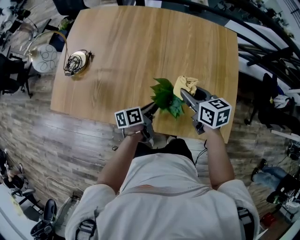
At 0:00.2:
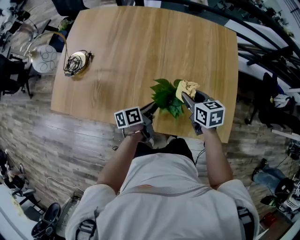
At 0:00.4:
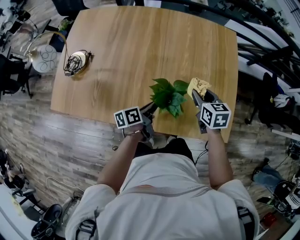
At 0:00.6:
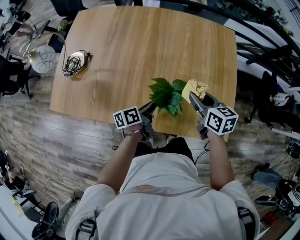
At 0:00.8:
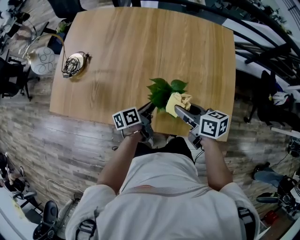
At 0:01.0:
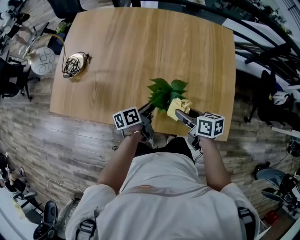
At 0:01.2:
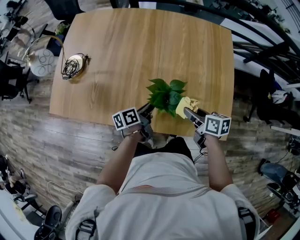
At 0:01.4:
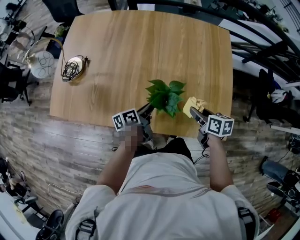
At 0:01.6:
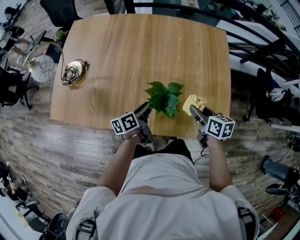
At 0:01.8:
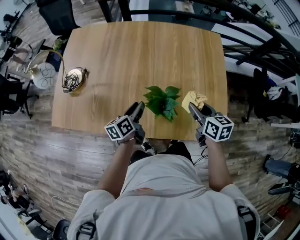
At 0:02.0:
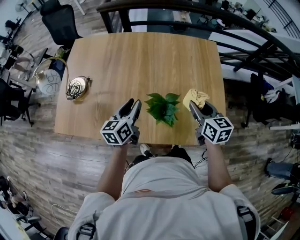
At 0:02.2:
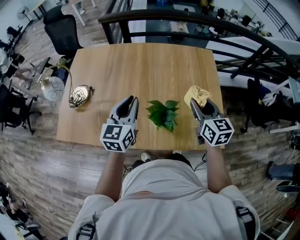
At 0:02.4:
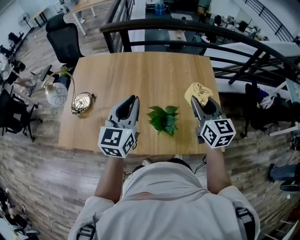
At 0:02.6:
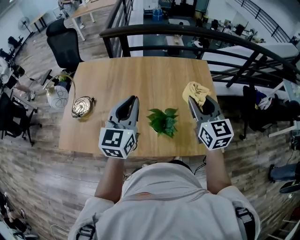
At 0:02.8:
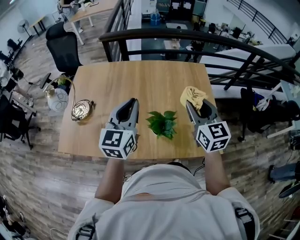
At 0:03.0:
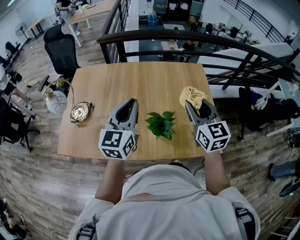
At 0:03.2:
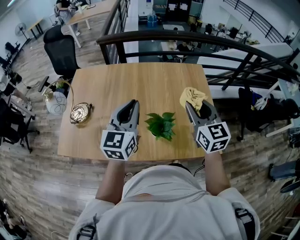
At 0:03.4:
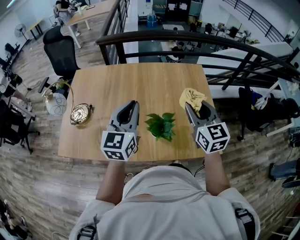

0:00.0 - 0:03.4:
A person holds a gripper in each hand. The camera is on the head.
0:00.0 - 0:01.6: The right gripper moves left and right over about 10 cm, changing direction 2 times.
0:01.6 - 0:03.4: Both grippers travel together upward, roughly 25 cm. The right gripper turns by about 50 degrees. Meanwhile the left gripper twists about 60 degrees clockwise, seen from behind, and closes.

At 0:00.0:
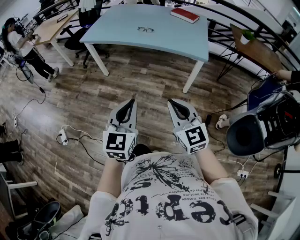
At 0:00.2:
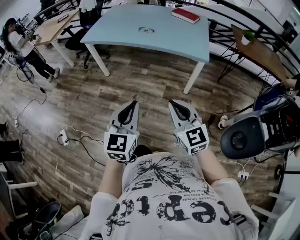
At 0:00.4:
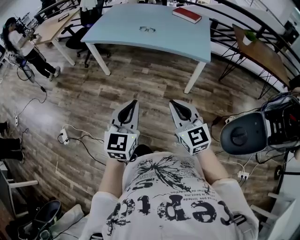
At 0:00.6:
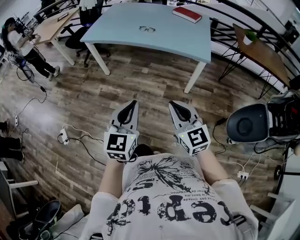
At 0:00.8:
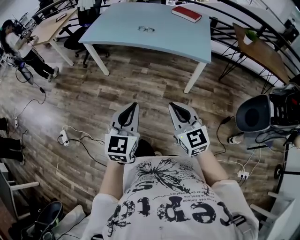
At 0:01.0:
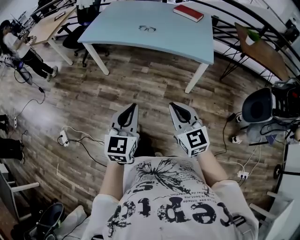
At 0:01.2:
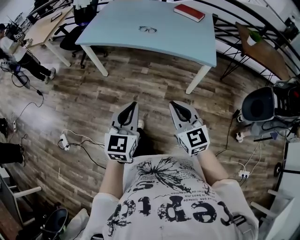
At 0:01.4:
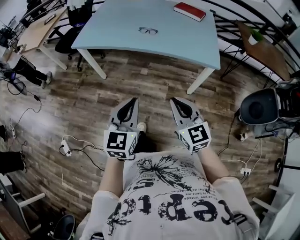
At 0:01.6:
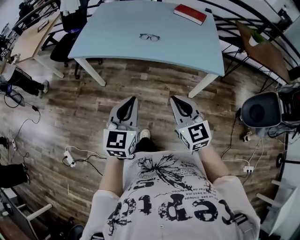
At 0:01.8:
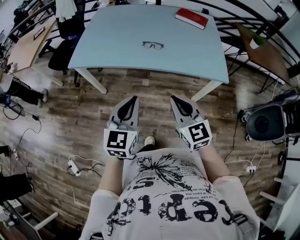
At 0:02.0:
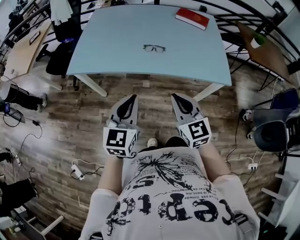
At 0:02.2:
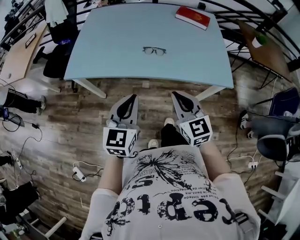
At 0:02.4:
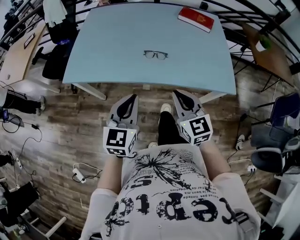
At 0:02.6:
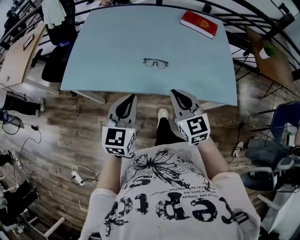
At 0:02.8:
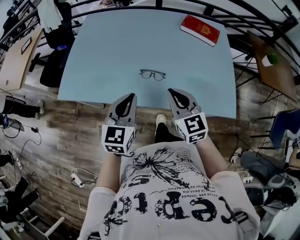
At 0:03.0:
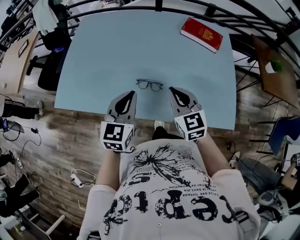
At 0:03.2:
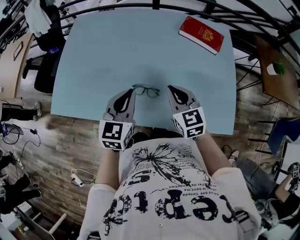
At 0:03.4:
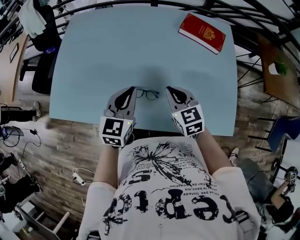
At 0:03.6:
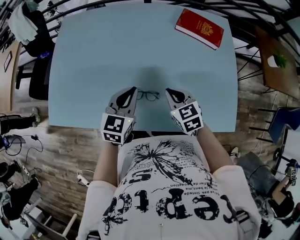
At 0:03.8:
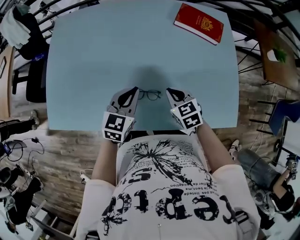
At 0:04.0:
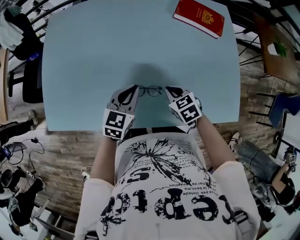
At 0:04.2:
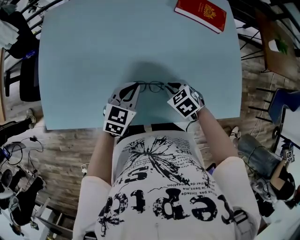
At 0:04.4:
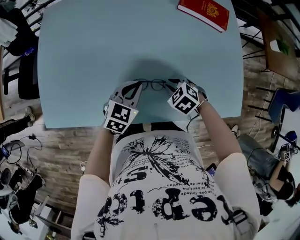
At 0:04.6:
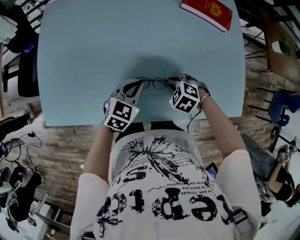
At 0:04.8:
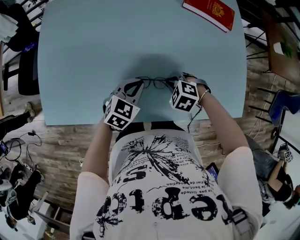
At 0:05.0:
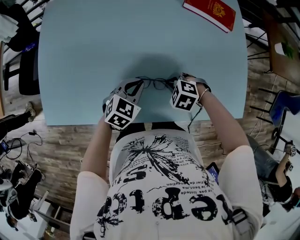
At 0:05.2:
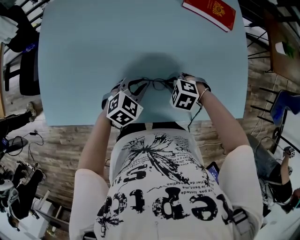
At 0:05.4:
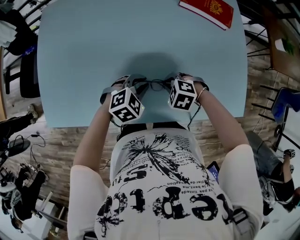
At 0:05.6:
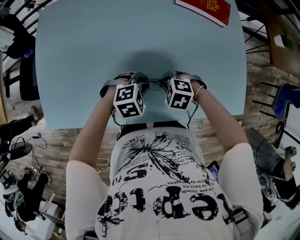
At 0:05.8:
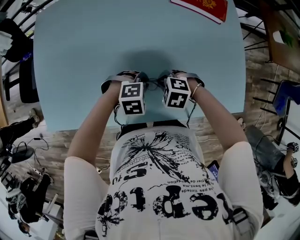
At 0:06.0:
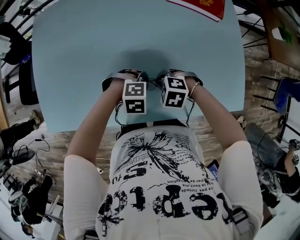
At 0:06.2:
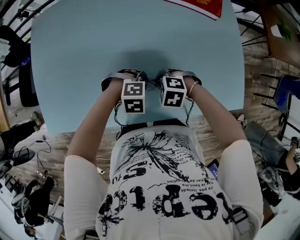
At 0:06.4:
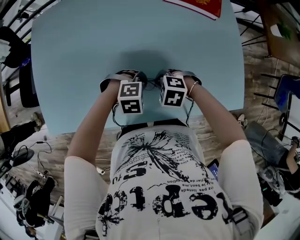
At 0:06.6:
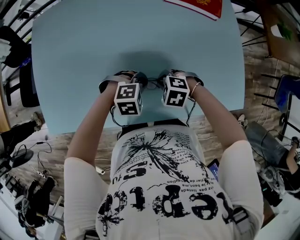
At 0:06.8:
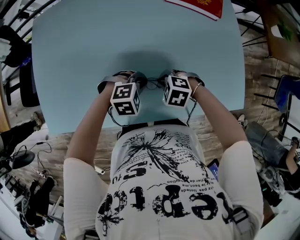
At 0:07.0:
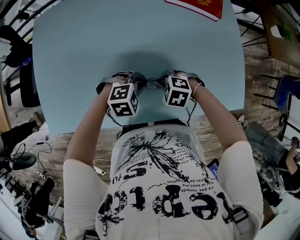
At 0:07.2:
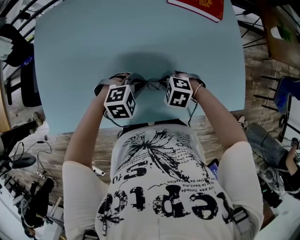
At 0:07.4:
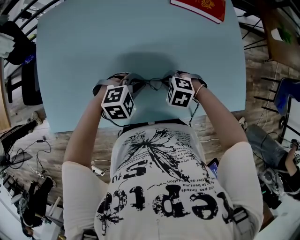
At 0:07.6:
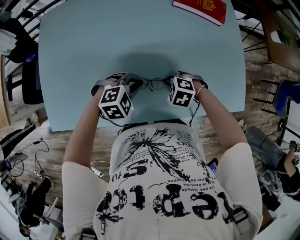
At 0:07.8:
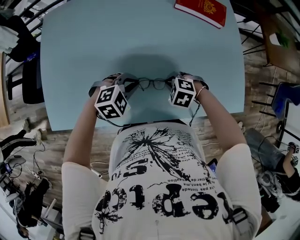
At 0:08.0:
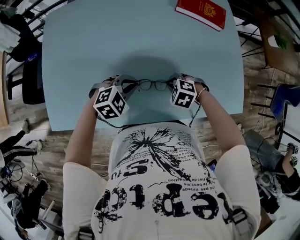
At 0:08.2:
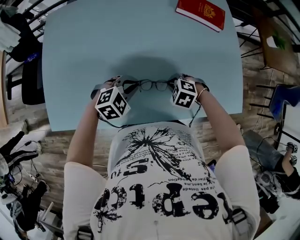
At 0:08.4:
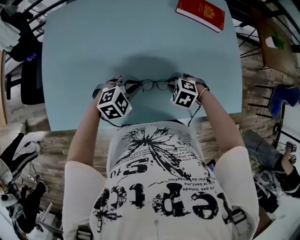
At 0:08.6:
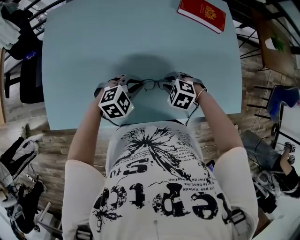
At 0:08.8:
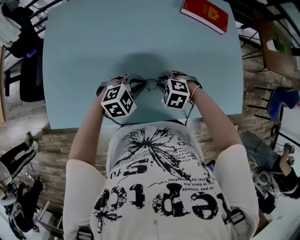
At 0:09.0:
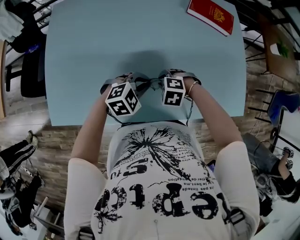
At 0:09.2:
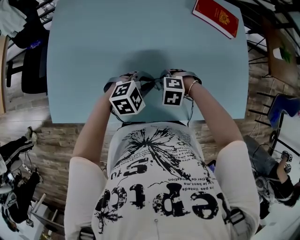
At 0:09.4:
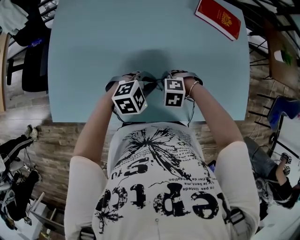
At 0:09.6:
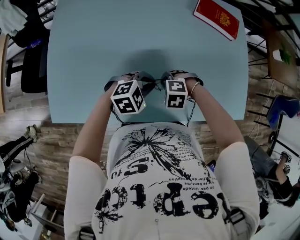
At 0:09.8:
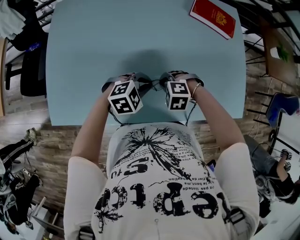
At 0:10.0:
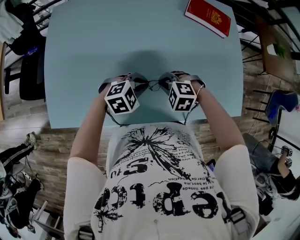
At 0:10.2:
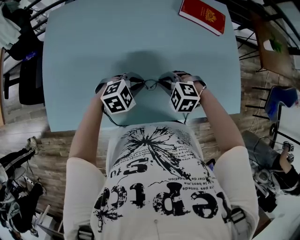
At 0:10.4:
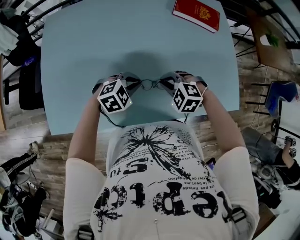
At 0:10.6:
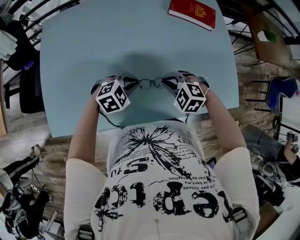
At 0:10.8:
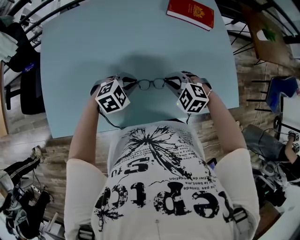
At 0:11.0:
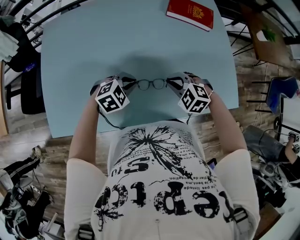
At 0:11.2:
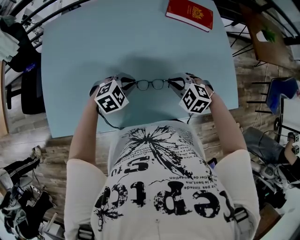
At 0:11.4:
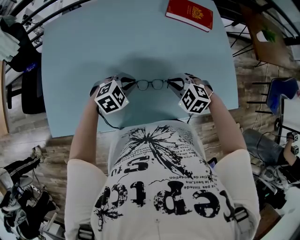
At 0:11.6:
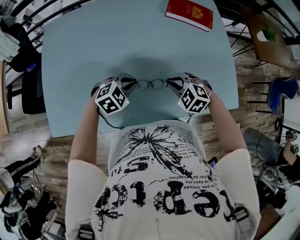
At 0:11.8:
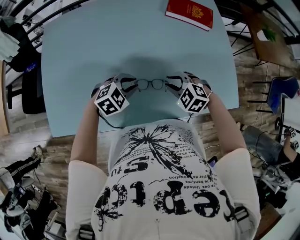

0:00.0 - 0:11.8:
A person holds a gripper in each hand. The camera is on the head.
0:00.0 - 0:01.4: Both grippers travel together forward, about 20 cm.
0:01.4 - 0:03.0: The pair of grippers is taken forward, roughly 60 cm.
0:03.0 - 0:04.4: The grippers both shift downward and forward by some 20 cm. The right gripper angles its fingers downward, by roughly 50 degrees. The left gripper changes its angle by some 30 degrees.
0:04.4 - 0:06.0: The right gripper turns by roughly 20 degrees. The left gripper is displaced downward by about 5 cm, and angles its fingers downward, by approximately 40 degrees.
0:06.0 - 0:07.4: The left gripper shifts approximately 5 cm upward.
0:07.4 - 0:08.8: The right gripper moves roughly 10 cm. The left gripper ends up roughly 5 cm from where it was.
0:08.8 - 0:10.4: The right gripper goes roughly 5 cm upward.
0:10.4 - 0:11.8: The right gripper moves to the right, some 5 cm, and opens.

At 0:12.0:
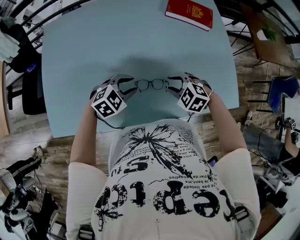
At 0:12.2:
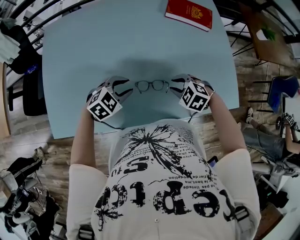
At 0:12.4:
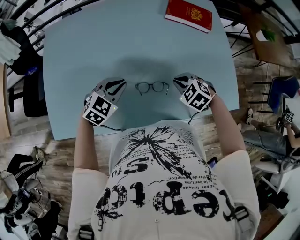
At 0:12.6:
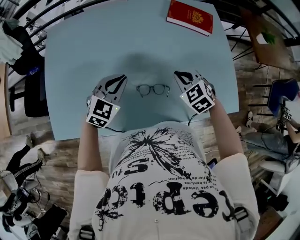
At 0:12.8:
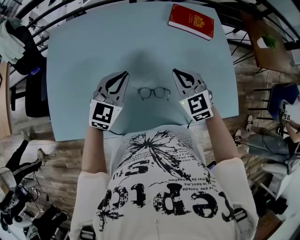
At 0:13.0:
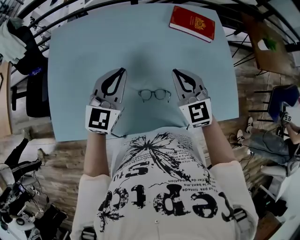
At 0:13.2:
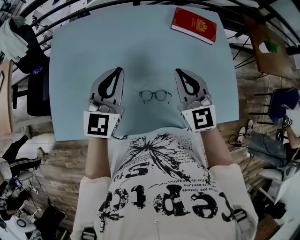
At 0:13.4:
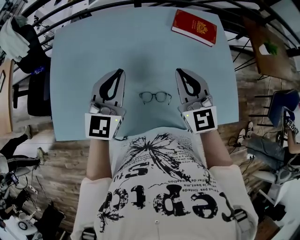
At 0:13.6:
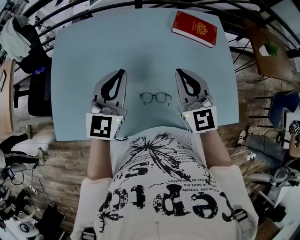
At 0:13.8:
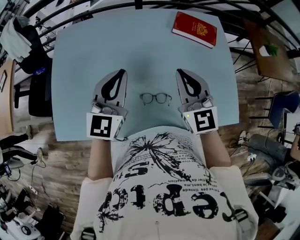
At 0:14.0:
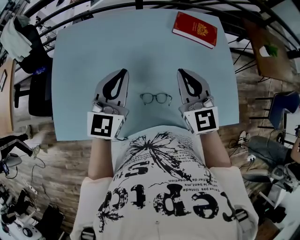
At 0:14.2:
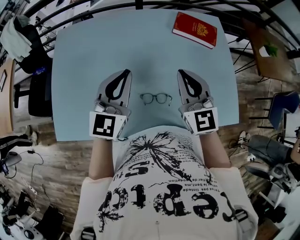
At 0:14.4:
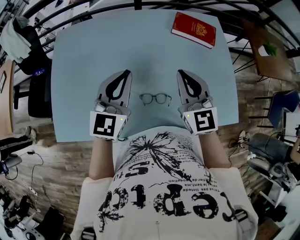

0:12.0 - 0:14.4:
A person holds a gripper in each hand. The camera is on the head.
0:12.0 - 0:13.2: The grippers both shift upward by some 20 cm. The right gripper angles its fingers upward, by some 50 degrees, and closes its fingers; the left gripper points its fingers about 50 degrees further upward, and closes up.
0:13.2 - 0:14.4: The grippers stay close to where they were, moving slightly.

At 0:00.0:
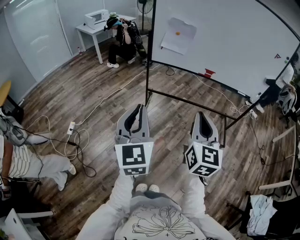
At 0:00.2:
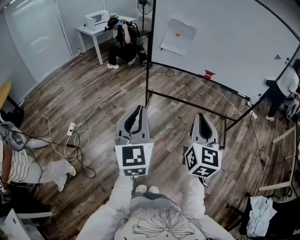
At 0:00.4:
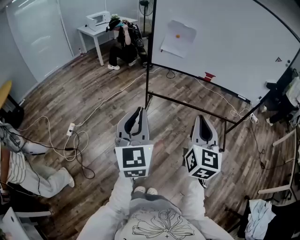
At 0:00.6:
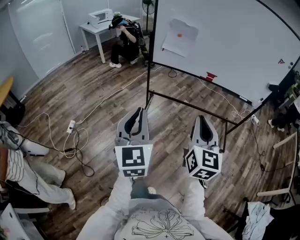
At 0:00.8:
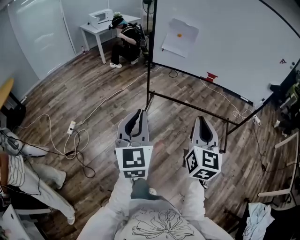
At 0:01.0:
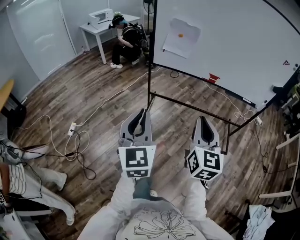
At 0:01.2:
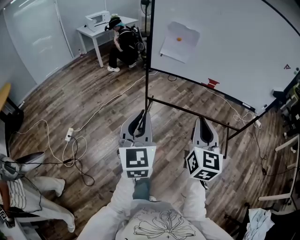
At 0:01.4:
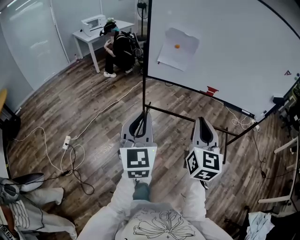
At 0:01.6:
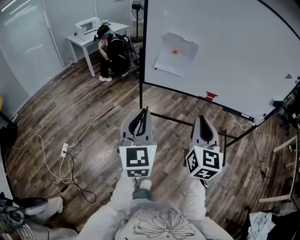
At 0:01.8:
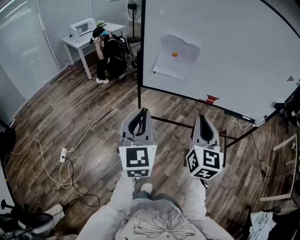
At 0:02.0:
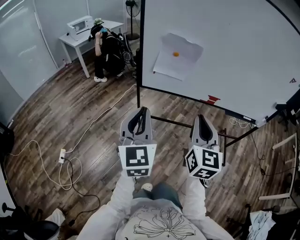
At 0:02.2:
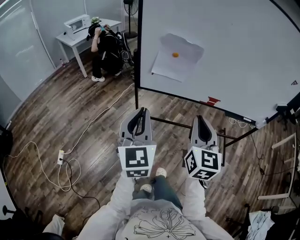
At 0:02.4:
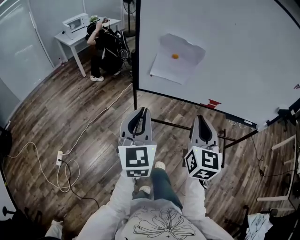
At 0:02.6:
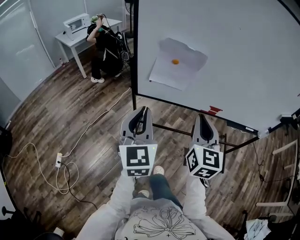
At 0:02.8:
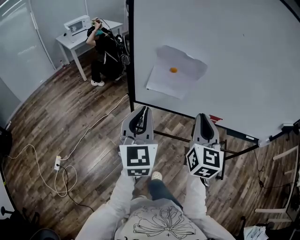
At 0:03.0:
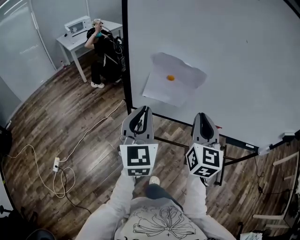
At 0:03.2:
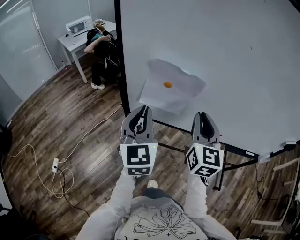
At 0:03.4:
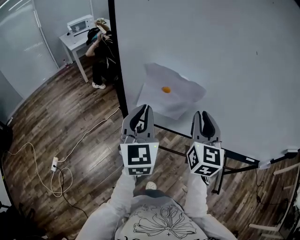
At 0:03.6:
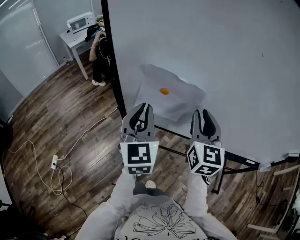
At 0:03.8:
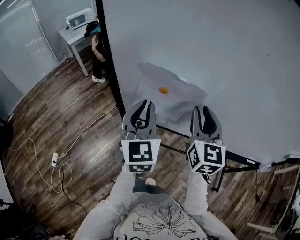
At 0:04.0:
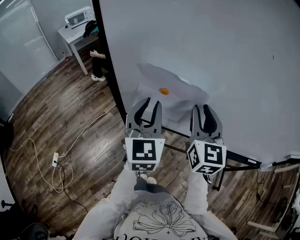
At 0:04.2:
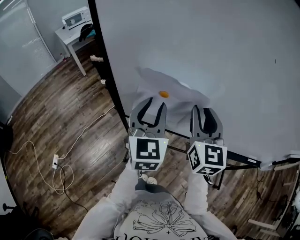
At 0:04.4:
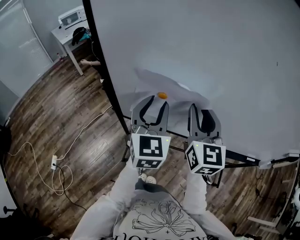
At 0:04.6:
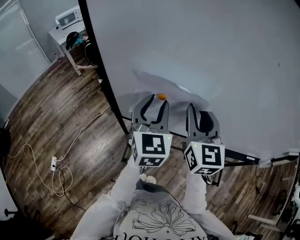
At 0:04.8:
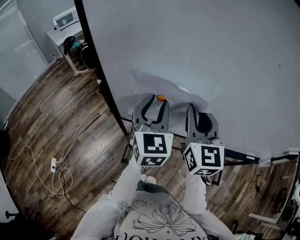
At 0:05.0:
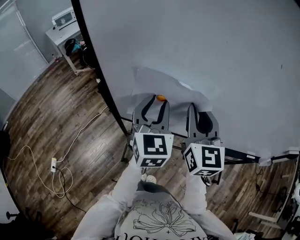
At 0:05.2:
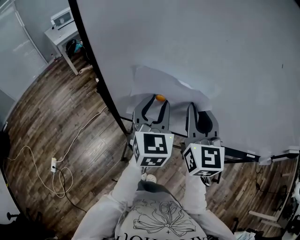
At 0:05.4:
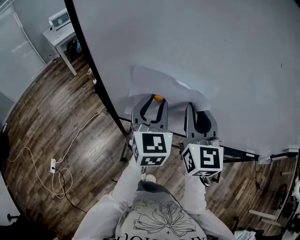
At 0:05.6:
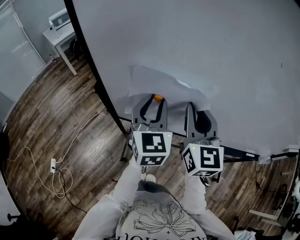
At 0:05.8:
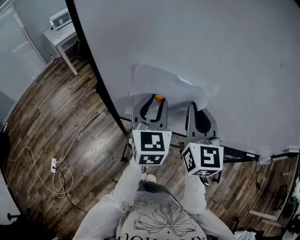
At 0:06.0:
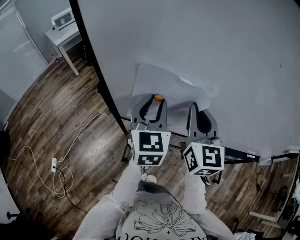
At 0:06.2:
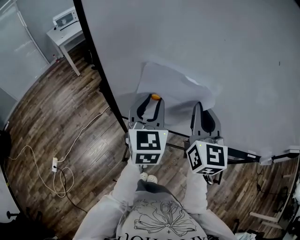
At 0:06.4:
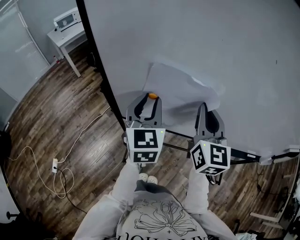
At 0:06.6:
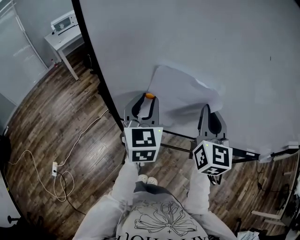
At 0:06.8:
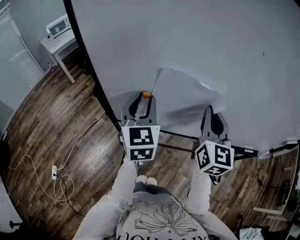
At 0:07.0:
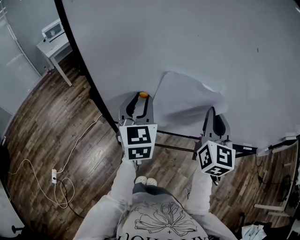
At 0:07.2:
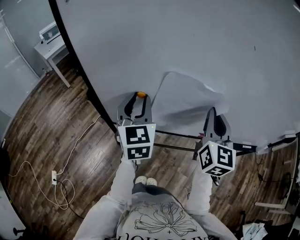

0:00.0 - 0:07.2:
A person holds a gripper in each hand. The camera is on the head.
0:00.0 - 0:01.4: Both grippers move forward, some 20 cm.
0:01.4 - 0:02.8: Both grippers move forward, about 35 cm.
0:02.8 - 0:04.4: The right gripper heads forward, covering roughly 20 cm, and opens up. Meanwhile the left gripper goes some 25 cm forward and to the right, and opens up.
0:04.4 - 0:05.8: The right gripper closes.
0:05.8 - 0:07.2: The right gripper goes roughly 10 cm to the right.
